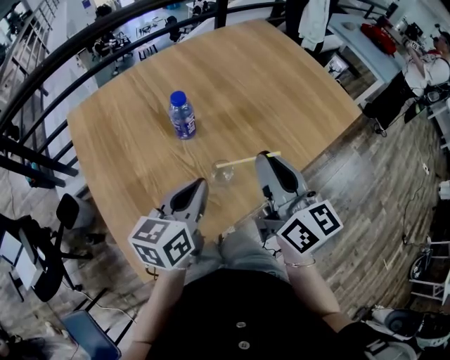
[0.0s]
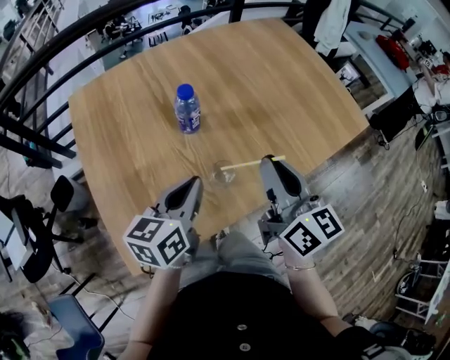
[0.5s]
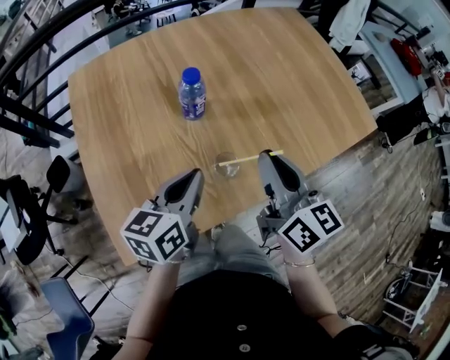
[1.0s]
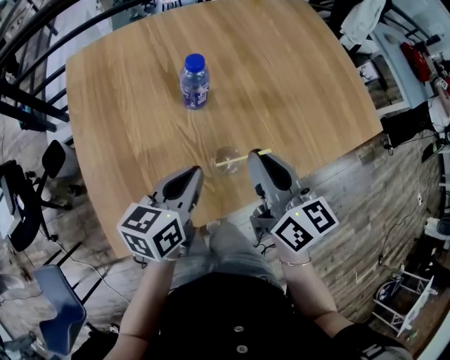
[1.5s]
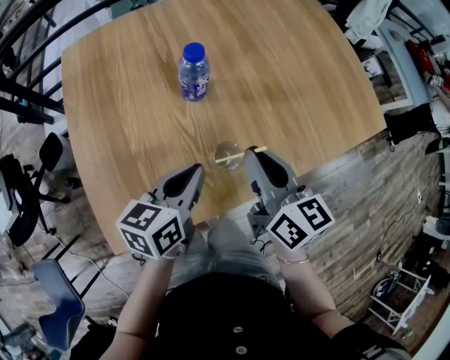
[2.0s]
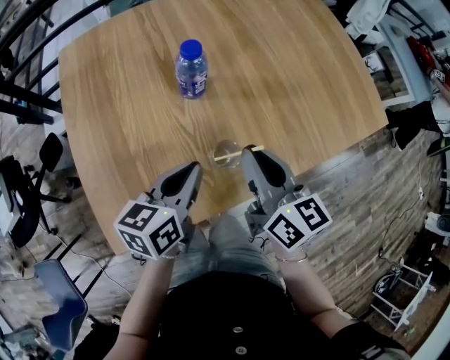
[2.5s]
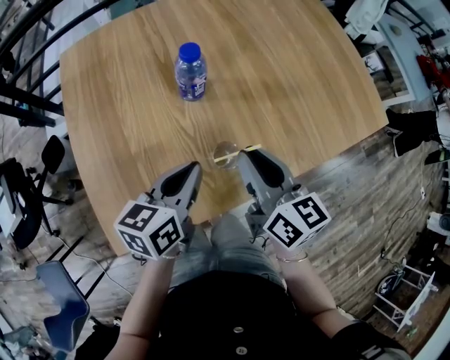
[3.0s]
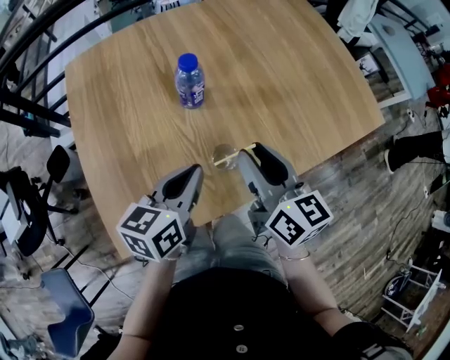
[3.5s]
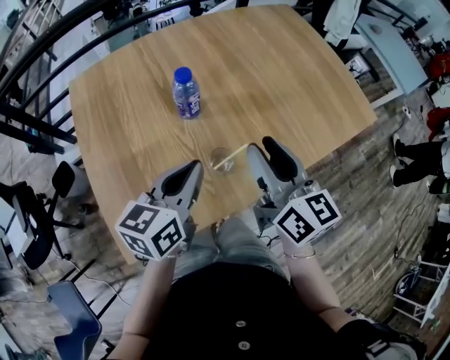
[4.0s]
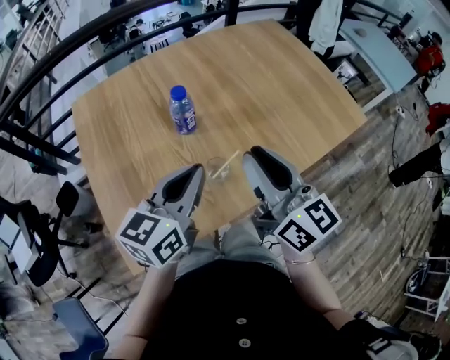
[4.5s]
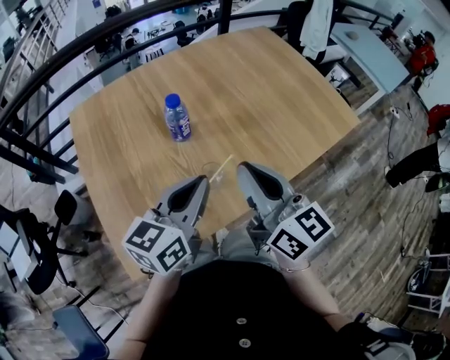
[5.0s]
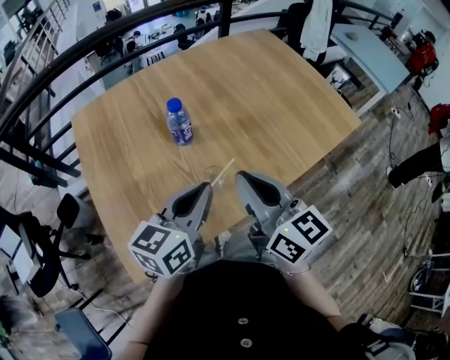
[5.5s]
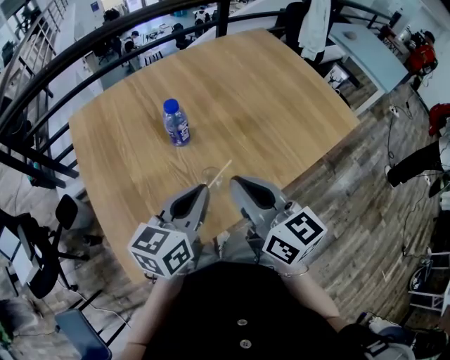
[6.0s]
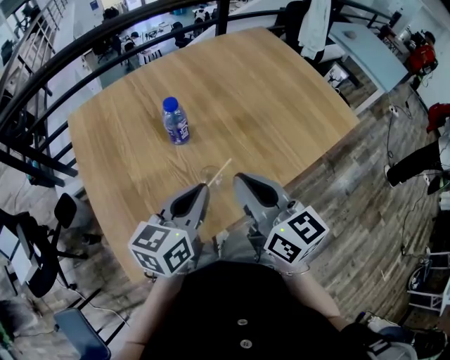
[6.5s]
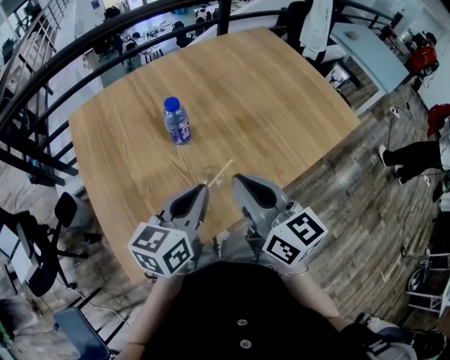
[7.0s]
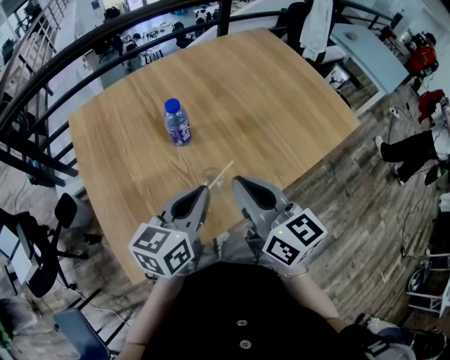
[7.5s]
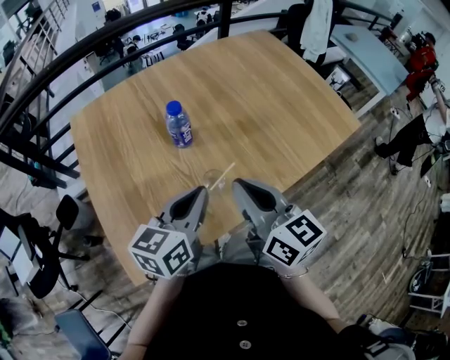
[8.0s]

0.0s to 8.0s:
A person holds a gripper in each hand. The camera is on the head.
0.0s to 2.0s: The two grippers go about 10 cm downward. The right gripper turns by roughly 20 degrees.
2.0s to 4.0s: The two grippers go roughly 5 cm upward. The right gripper opens.
4.0s to 6.0s: The right gripper is displaced backward by some 5 cm, and closes up. Meanwhile the left gripper changes place by some 5 cm.
6.0s to 8.0s: Both grippers stay put.

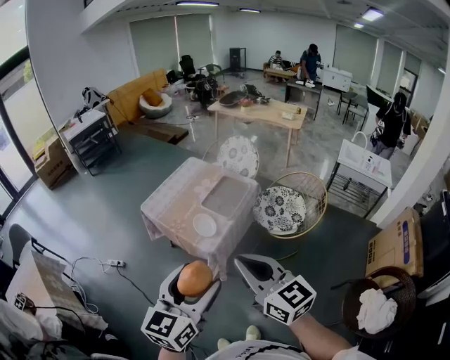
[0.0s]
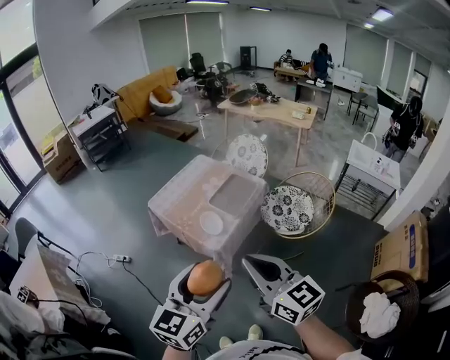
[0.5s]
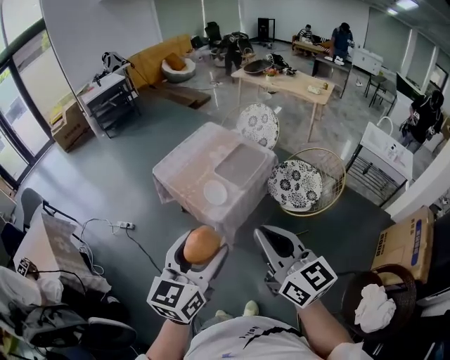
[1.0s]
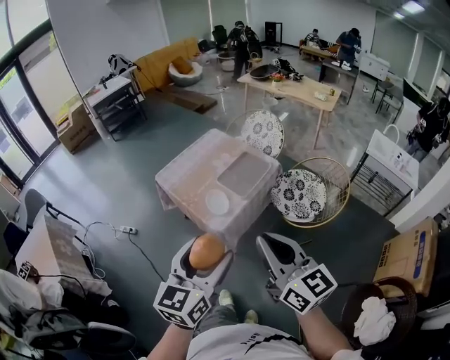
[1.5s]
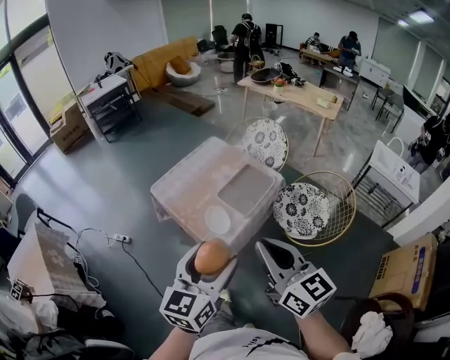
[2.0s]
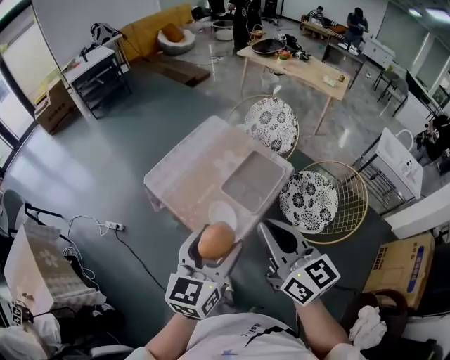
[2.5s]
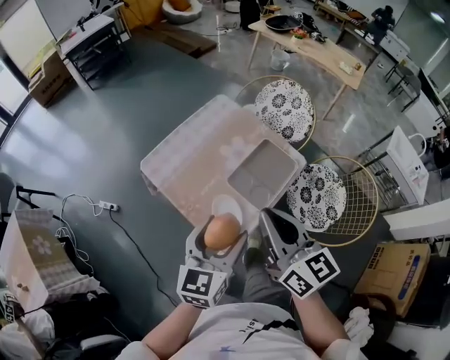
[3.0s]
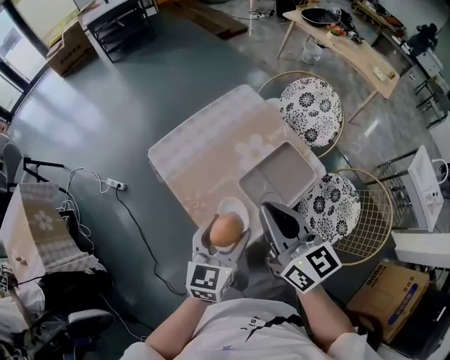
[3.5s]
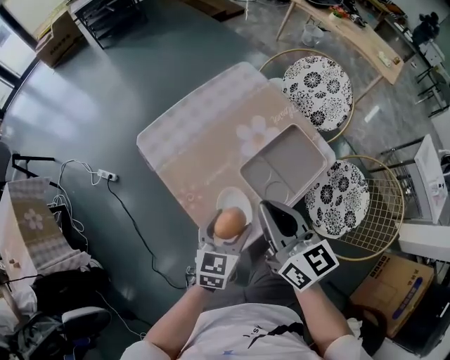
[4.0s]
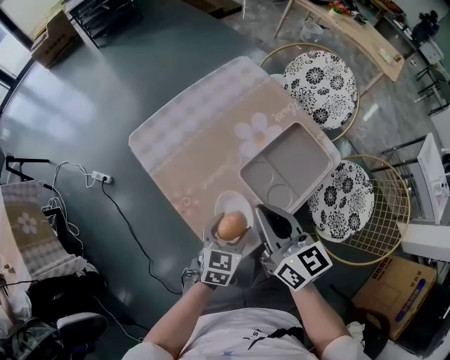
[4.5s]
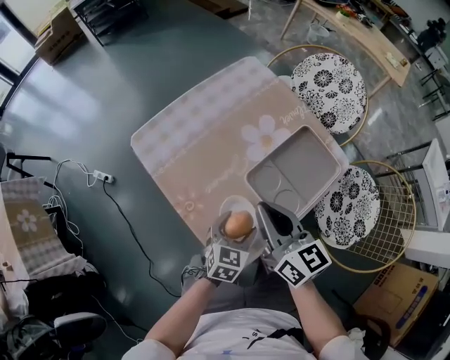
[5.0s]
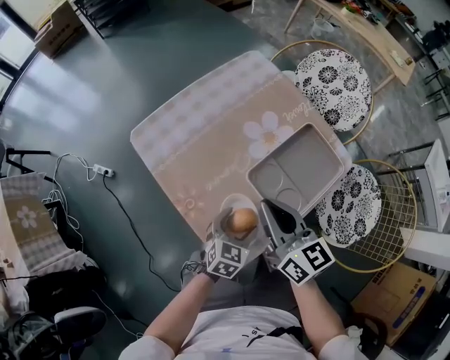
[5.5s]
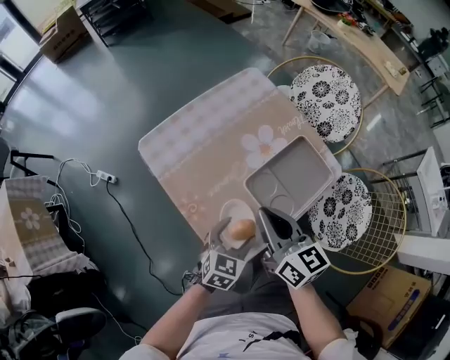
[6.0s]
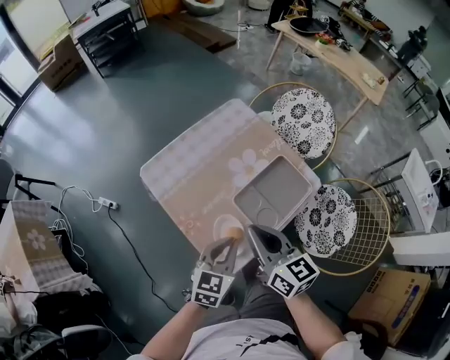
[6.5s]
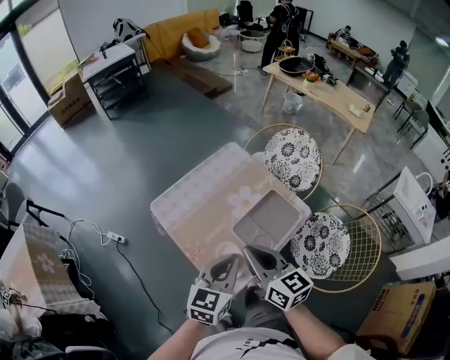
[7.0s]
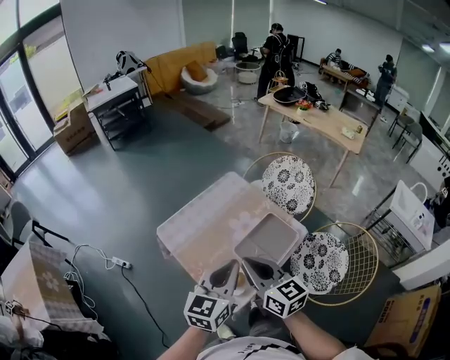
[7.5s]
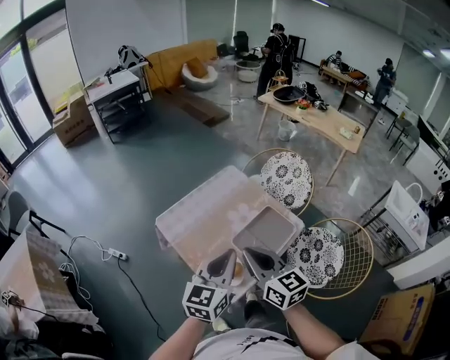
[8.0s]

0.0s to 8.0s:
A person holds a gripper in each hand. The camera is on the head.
0.0s to 2.0s: The two grippers go approximately 15 cm forward.
2.0s to 4.0s: The right gripper shifts roughly 40 cm forward and downward. The left gripper travels downward and forward by approximately 40 cm, and turns by roughly 20 degrees.
4.0s to 6.0s: Both grippers move downward, roughly 5 cm.
6.0s to 8.0s: The right gripper moves upward, some 20 cm. Meanwhile the left gripper is displaced upward by about 35 cm, tilts its fingers some 30 degrees upward, and closes up.

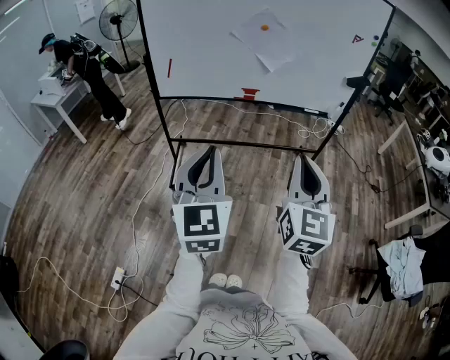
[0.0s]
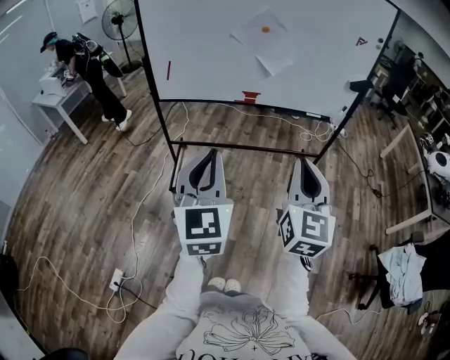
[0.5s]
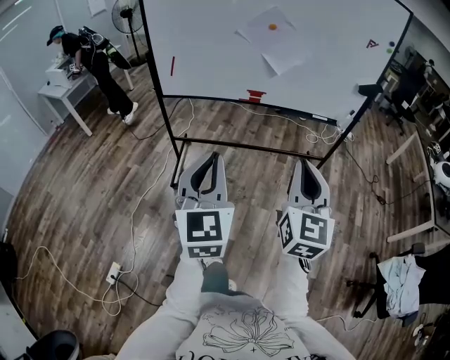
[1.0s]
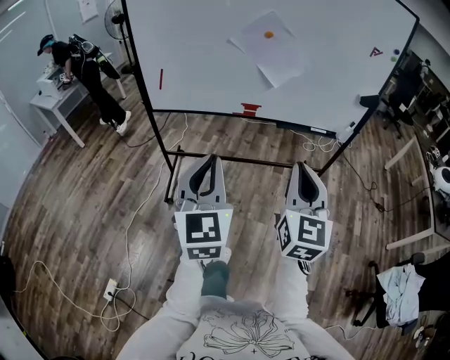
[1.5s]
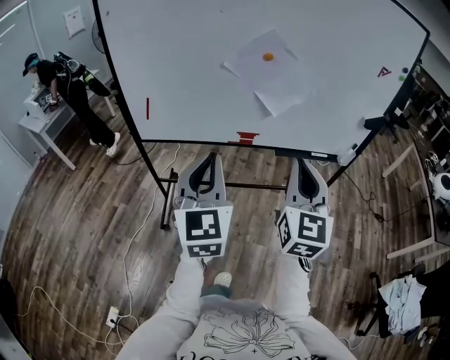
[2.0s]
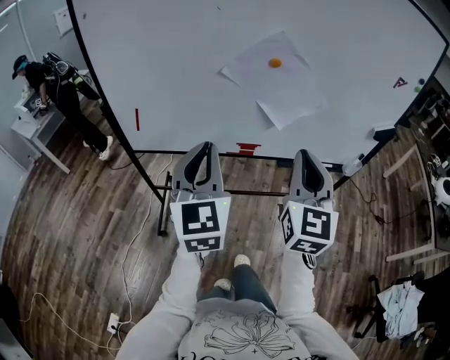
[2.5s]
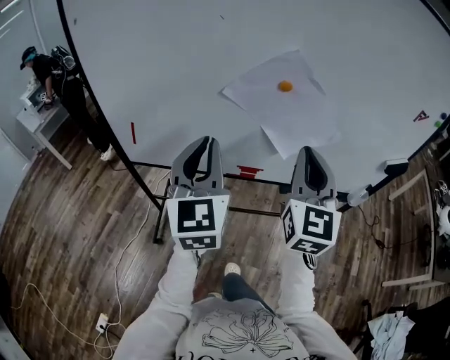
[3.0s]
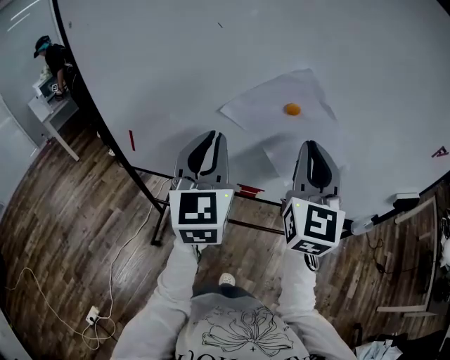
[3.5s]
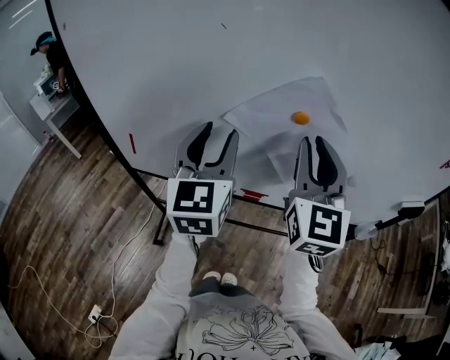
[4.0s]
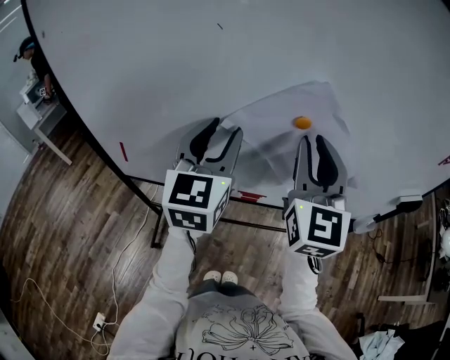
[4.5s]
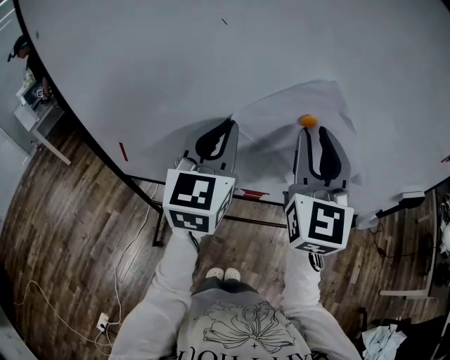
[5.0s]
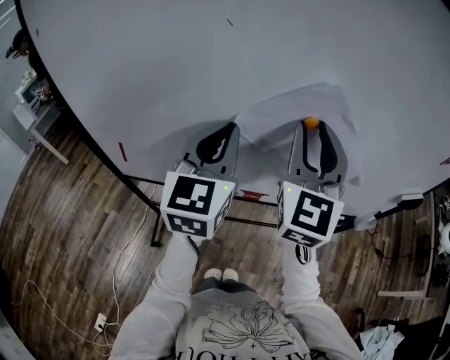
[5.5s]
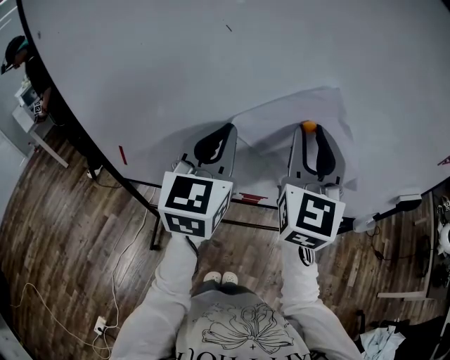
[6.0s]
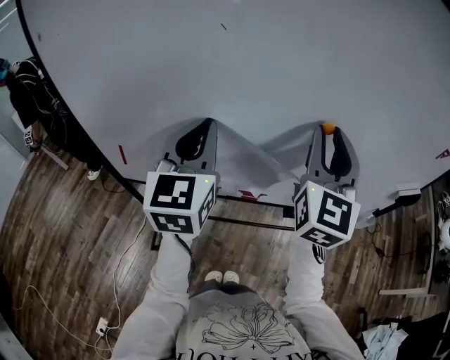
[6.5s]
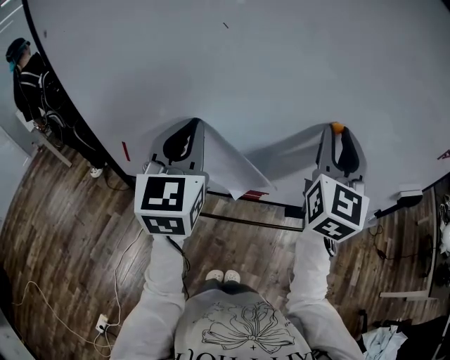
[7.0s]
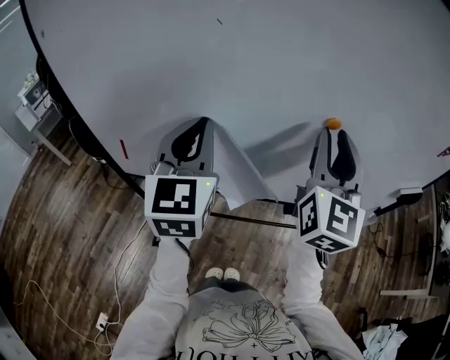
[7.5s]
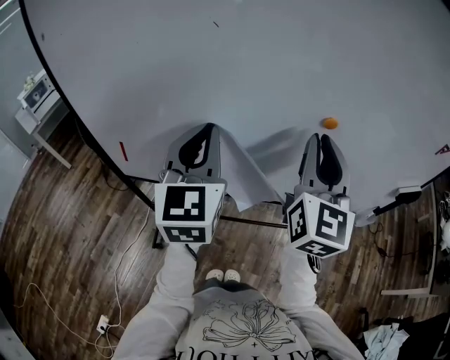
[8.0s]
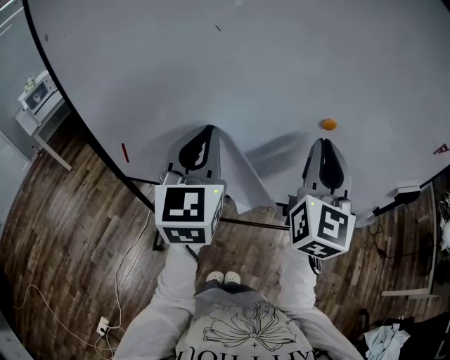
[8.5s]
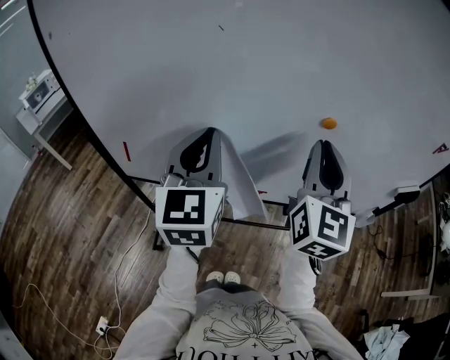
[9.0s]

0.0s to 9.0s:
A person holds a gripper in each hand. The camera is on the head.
0.0s to 2.0s: Both grippers travel together forward, some 30 cm.
2.0s to 4.5s: The grippers both shift forward by approximately 40 cm. The left gripper opens its fingers.
4.5s to 7.0s: The right gripper changes place by about 5 cm; the left gripper shifts some 5 cm to the left, and closes.
7.0s to 9.0s: The right gripper shifts by approximately 5 cm.

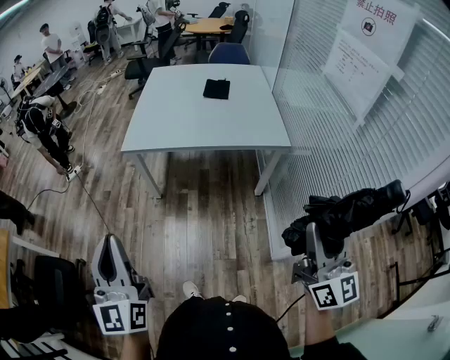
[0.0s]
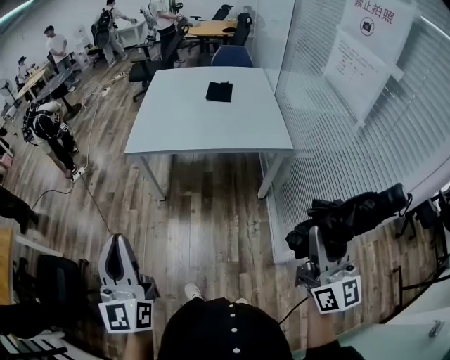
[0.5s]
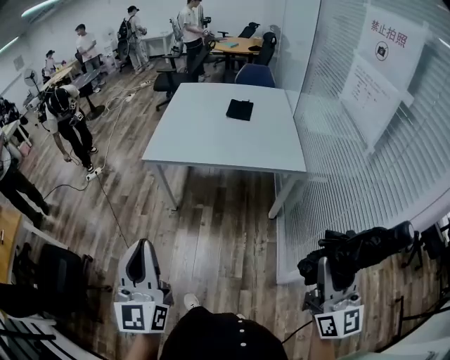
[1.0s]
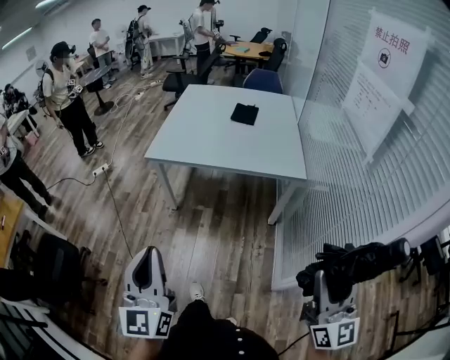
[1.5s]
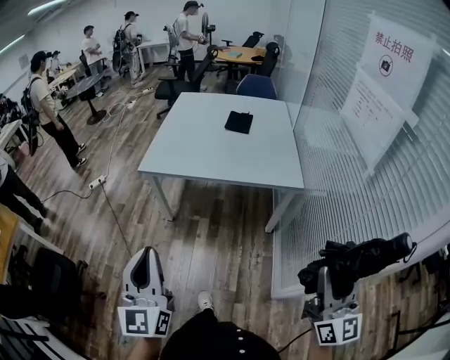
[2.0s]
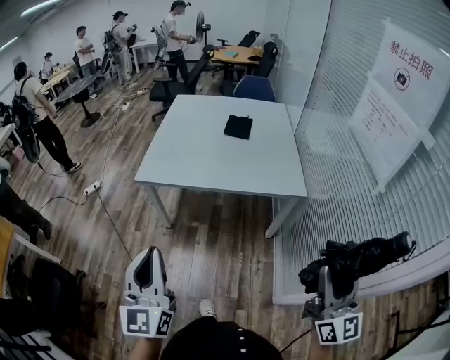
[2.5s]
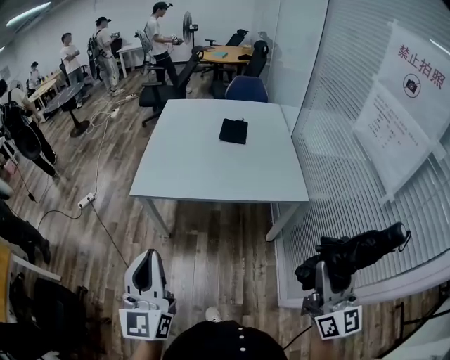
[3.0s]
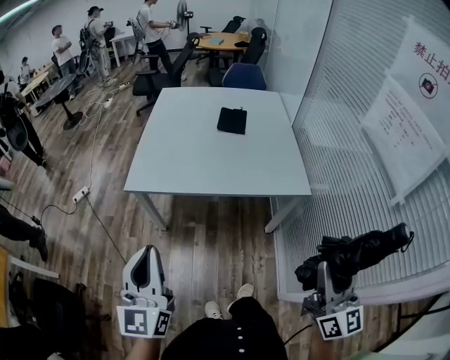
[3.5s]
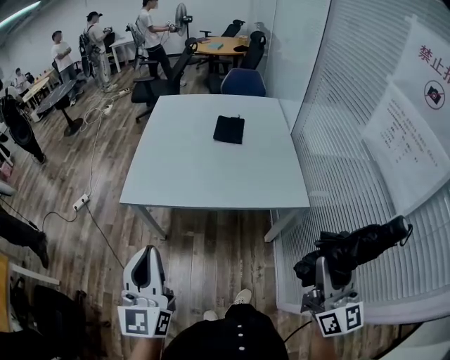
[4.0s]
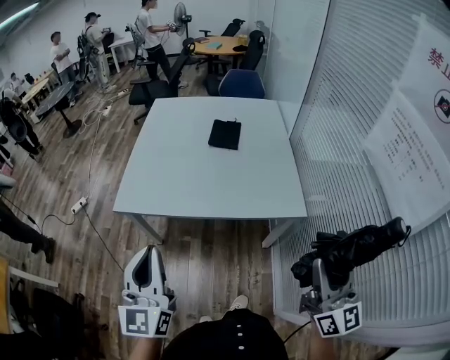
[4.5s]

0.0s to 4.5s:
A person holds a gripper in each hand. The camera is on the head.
0.0s to 2.0s: Both grippers move to the right, roughly 10 cm.
2.0s to 4.5s: Both grippers move forward, some 30 cm.
